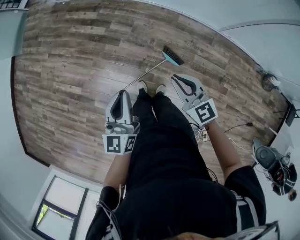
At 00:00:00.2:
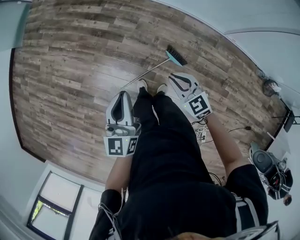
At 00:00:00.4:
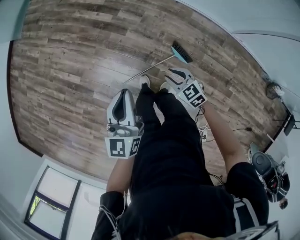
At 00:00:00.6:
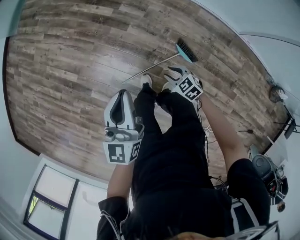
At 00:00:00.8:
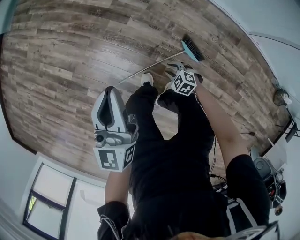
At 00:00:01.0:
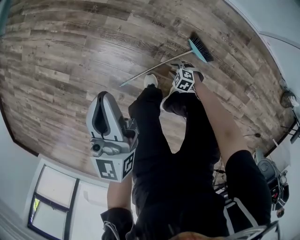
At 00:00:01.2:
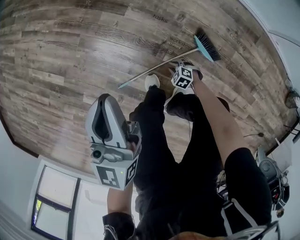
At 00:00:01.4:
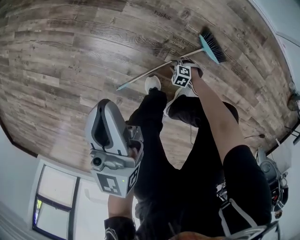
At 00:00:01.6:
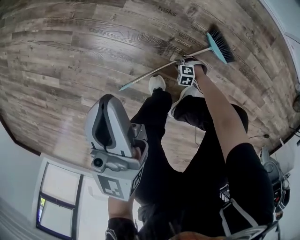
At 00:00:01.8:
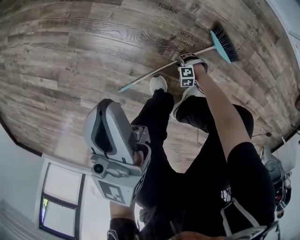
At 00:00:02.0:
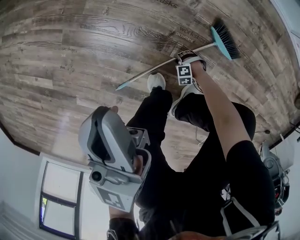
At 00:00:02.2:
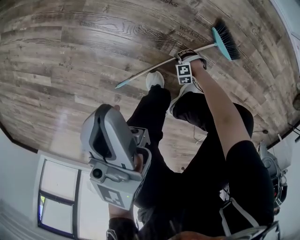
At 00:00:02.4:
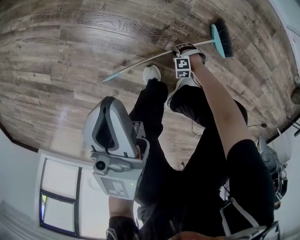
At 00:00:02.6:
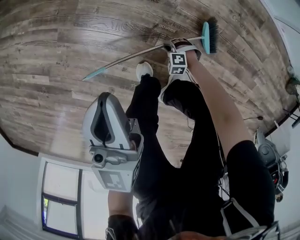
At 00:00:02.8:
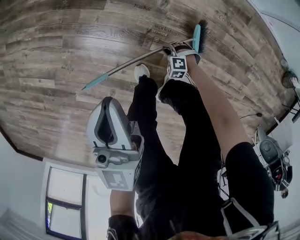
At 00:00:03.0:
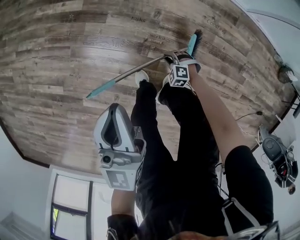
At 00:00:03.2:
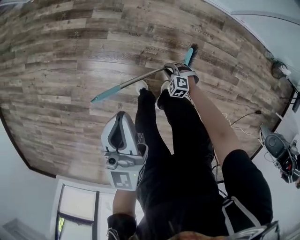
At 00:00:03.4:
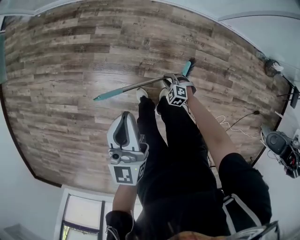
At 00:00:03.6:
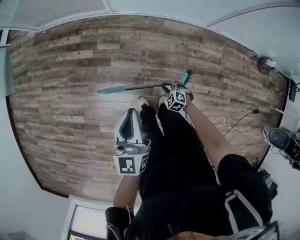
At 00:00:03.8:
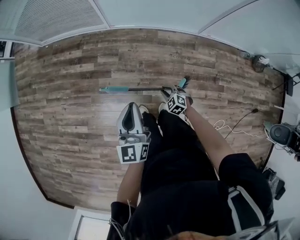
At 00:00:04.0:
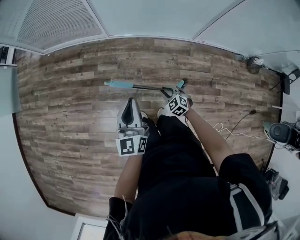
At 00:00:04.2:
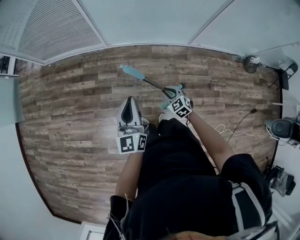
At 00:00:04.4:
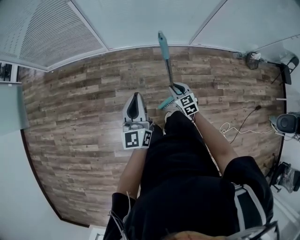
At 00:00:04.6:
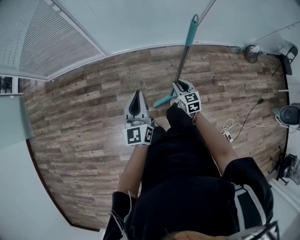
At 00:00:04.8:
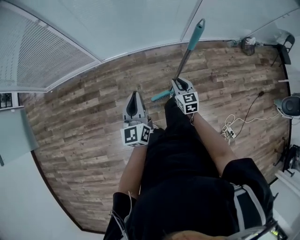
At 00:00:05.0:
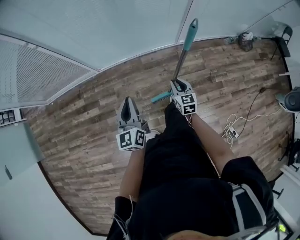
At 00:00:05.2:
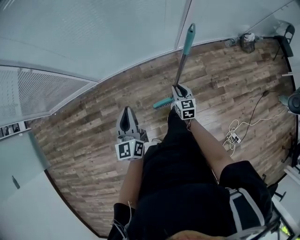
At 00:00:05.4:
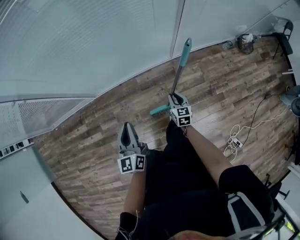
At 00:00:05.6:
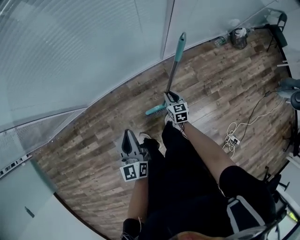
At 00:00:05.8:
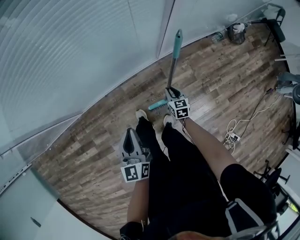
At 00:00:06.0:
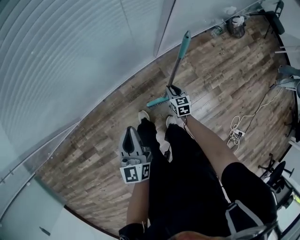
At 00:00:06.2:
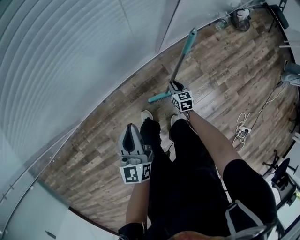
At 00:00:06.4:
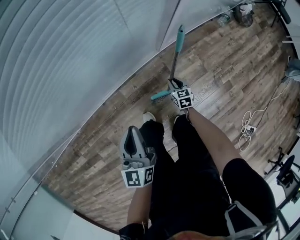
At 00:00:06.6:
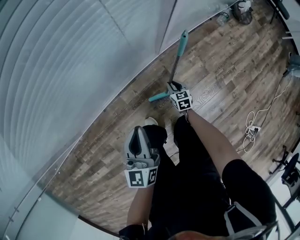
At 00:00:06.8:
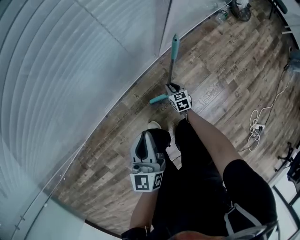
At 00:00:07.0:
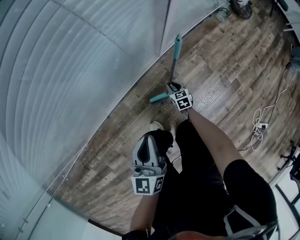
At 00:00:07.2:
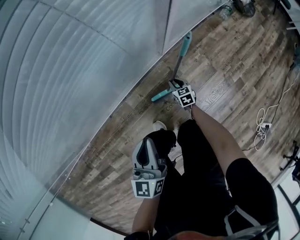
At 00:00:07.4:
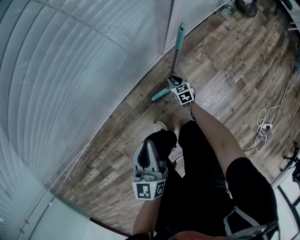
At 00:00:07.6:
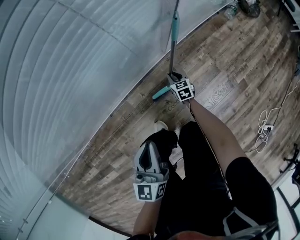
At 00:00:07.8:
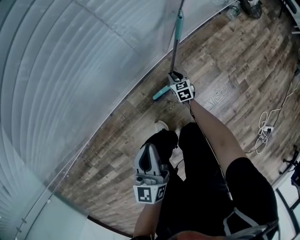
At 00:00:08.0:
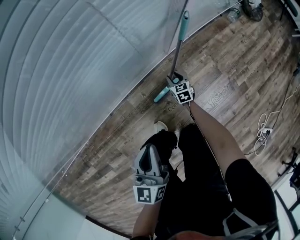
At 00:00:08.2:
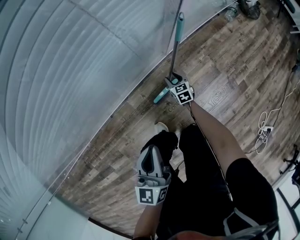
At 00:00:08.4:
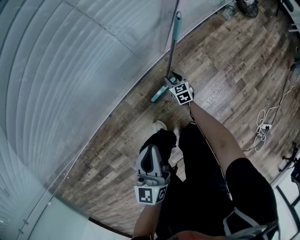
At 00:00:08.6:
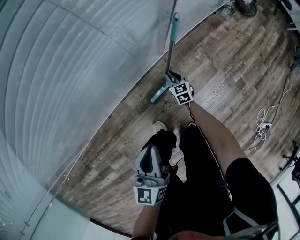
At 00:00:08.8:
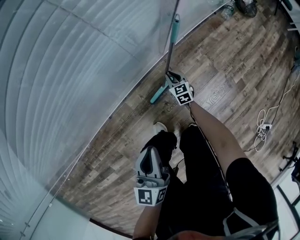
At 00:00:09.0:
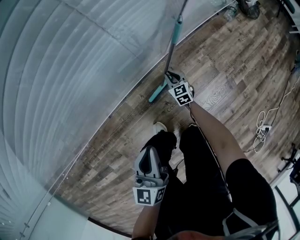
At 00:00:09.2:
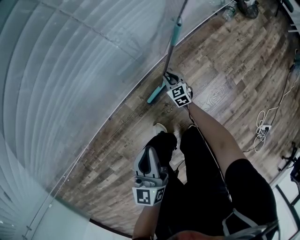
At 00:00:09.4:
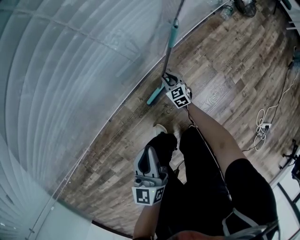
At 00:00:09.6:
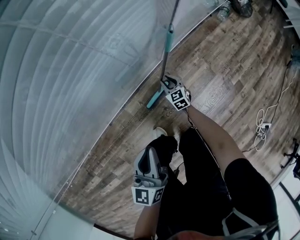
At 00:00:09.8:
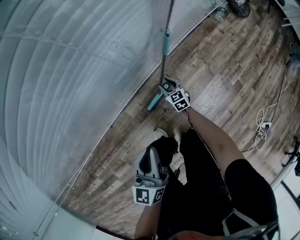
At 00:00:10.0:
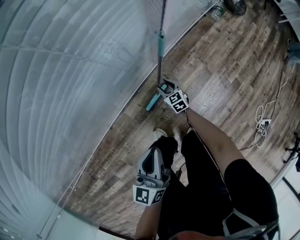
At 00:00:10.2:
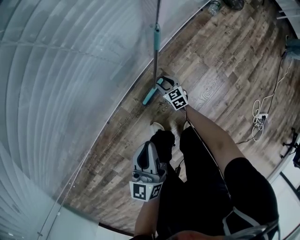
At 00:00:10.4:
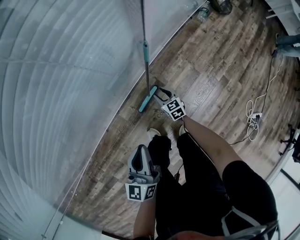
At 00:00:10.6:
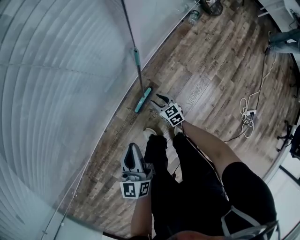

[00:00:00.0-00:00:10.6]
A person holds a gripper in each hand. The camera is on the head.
00:00:00.0 to 00:00:01.6: The right gripper goes some 90 cm downward, angles its fingers downward, by approximately 50 degrees, and opens. The left gripper moves downward, some 40 cm.
00:00:01.6 to 00:00:03.0: The right gripper is displaced upward by roughly 25 cm, and rotates approximately 20 degrees; the left gripper is displaced upward by about 20 cm.
00:00:03.0 to 00:00:04.6: The left gripper is displaced upward by some 25 cm, and rotates about 30 degrees. The right gripper moves upward, roughly 50 cm, and twists roughly 70 degrees clockwise, seen from behind.
00:00:04.6 to 00:00:06.0: The pair of grippers is taken forward and to the right, some 50 cm. The right gripper travels downward by approximately 25 cm, and swivels some 30 degrees. Meanwhile the left gripper is displaced downward by about 20 cm, and swivels about 20 degrees.
00:00:06.0 to 00:00:07.6: The right gripper travels downward and forward by approximately 30 cm; the left gripper goes approximately 20 cm downward.
00:00:07.6 to 00:00:09.0: The grippers stay close to where they were, moving slightly.
00:00:09.0 to 00:00:10.6: The left gripper shifts about 10 cm upward, while the right gripper goes about 15 cm upward and backward, and opens up.

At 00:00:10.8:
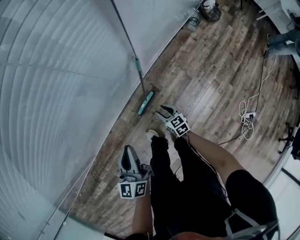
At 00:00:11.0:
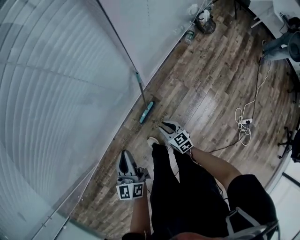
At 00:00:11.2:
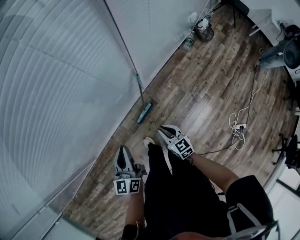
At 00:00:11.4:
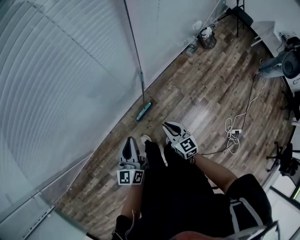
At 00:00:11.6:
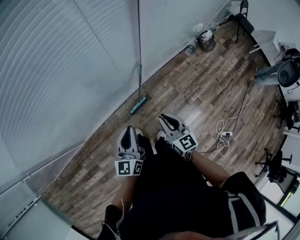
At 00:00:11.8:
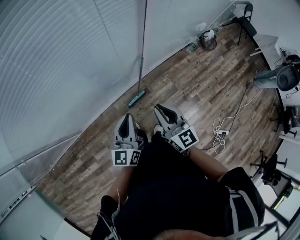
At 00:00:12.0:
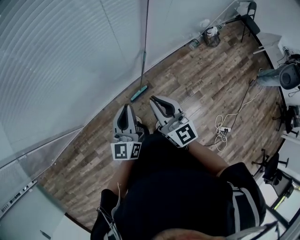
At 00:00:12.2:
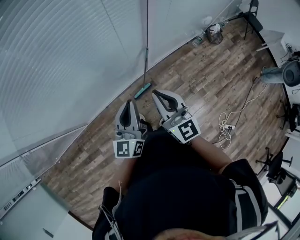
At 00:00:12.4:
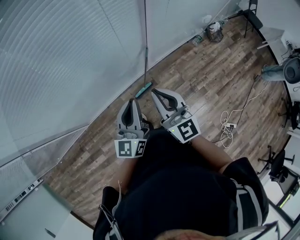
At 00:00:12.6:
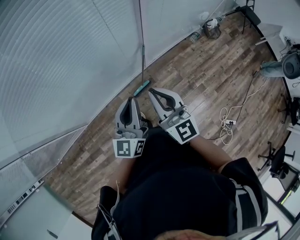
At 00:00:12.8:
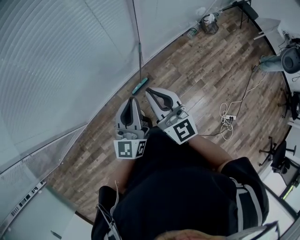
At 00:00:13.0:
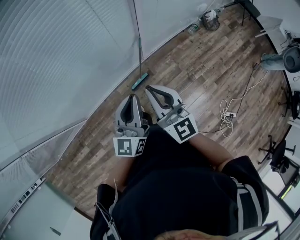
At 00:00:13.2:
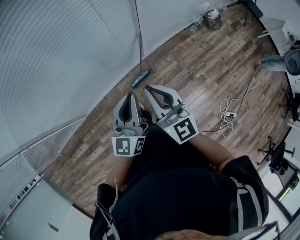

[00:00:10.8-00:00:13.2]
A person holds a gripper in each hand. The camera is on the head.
00:00:10.8 to 00:00:12.0: The left gripper is displaced upward by about 25 cm. The right gripper shifts roughly 60 cm upward, tilts its fingers about 40 degrees upward, and closes.
00:00:12.0 to 00:00:13.2: The left gripper ends up about 5 cm from where it was.

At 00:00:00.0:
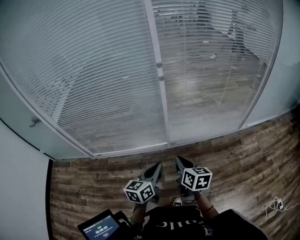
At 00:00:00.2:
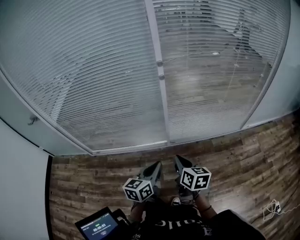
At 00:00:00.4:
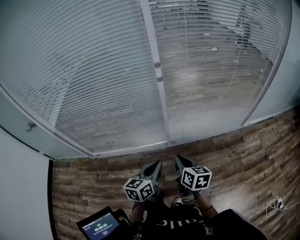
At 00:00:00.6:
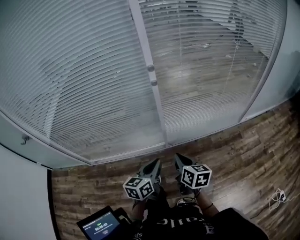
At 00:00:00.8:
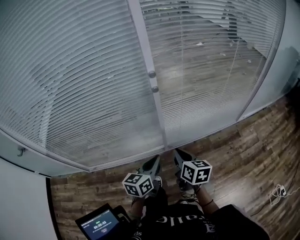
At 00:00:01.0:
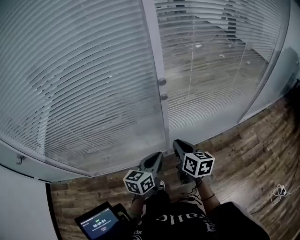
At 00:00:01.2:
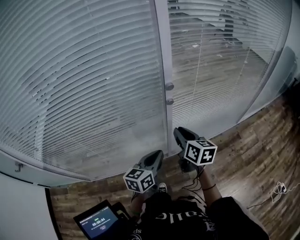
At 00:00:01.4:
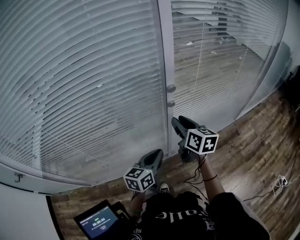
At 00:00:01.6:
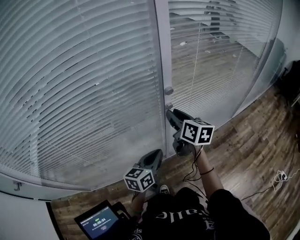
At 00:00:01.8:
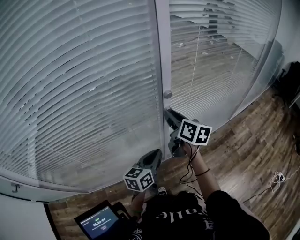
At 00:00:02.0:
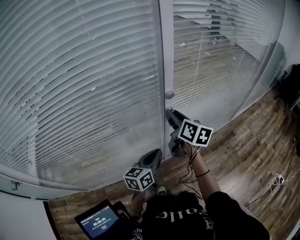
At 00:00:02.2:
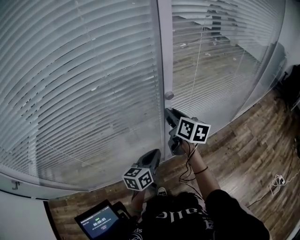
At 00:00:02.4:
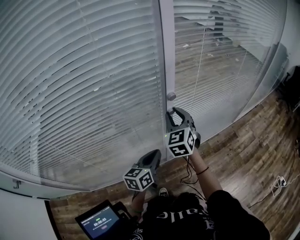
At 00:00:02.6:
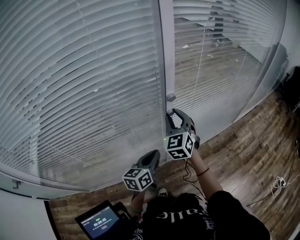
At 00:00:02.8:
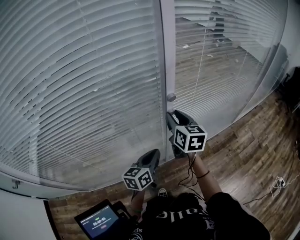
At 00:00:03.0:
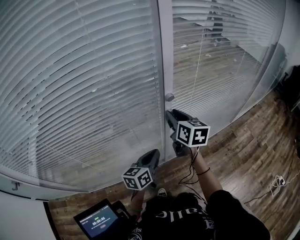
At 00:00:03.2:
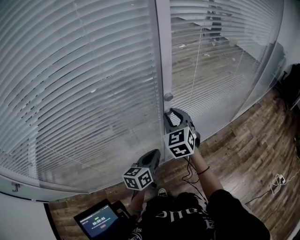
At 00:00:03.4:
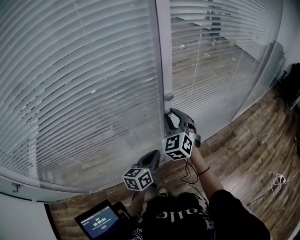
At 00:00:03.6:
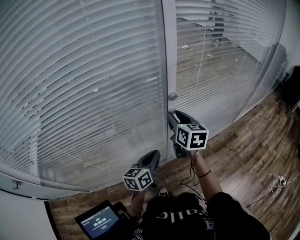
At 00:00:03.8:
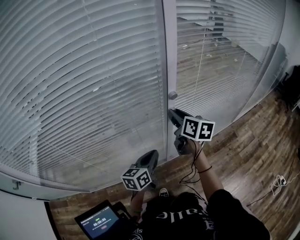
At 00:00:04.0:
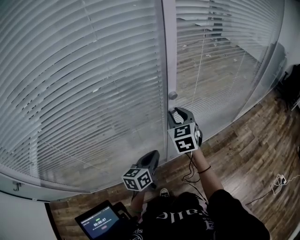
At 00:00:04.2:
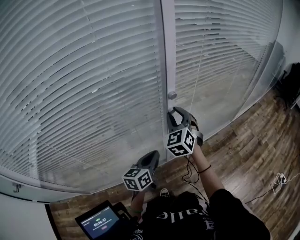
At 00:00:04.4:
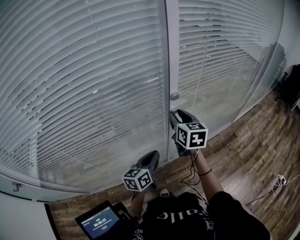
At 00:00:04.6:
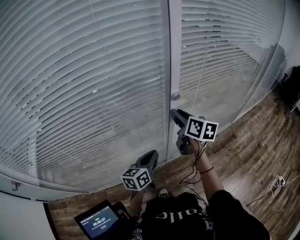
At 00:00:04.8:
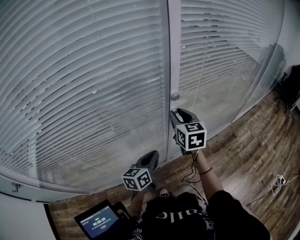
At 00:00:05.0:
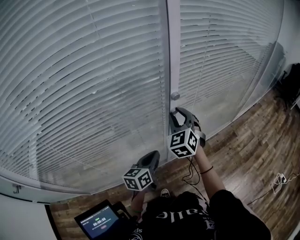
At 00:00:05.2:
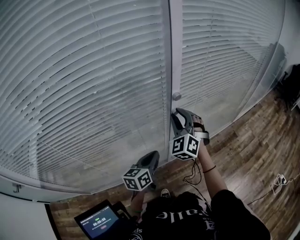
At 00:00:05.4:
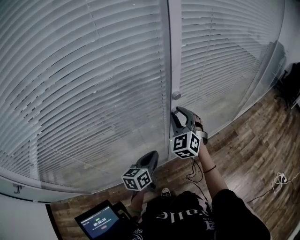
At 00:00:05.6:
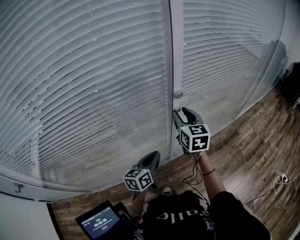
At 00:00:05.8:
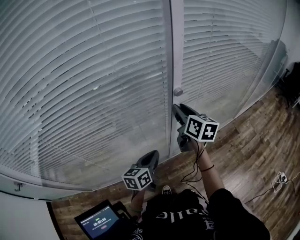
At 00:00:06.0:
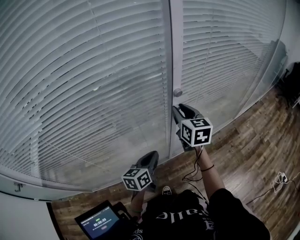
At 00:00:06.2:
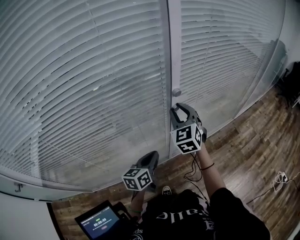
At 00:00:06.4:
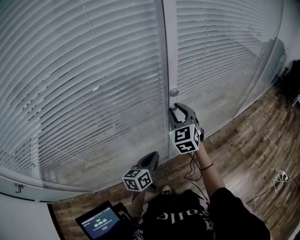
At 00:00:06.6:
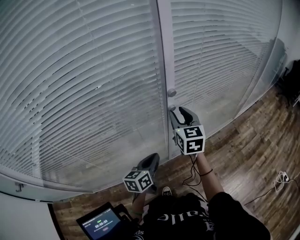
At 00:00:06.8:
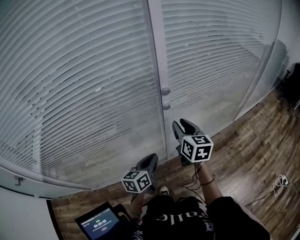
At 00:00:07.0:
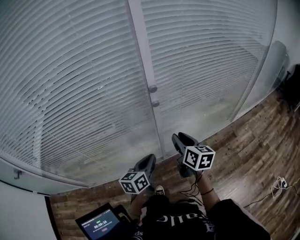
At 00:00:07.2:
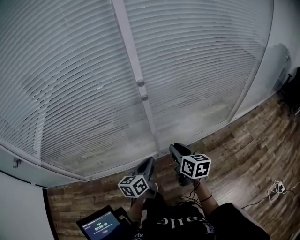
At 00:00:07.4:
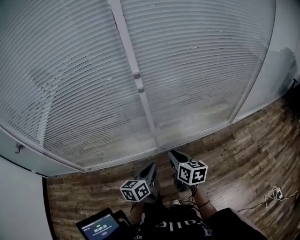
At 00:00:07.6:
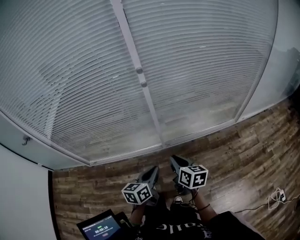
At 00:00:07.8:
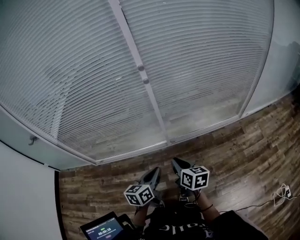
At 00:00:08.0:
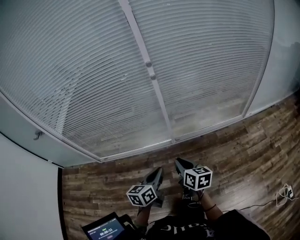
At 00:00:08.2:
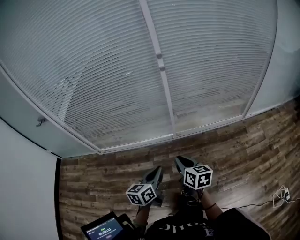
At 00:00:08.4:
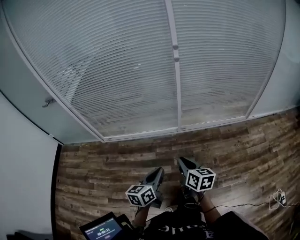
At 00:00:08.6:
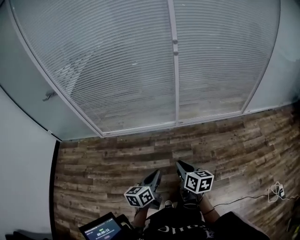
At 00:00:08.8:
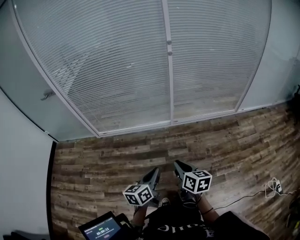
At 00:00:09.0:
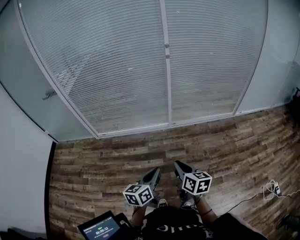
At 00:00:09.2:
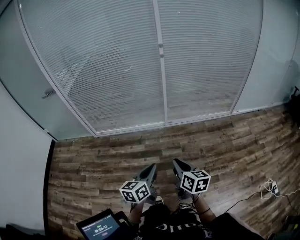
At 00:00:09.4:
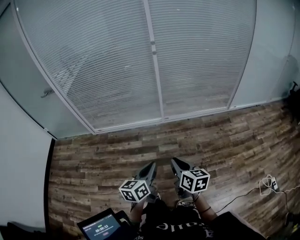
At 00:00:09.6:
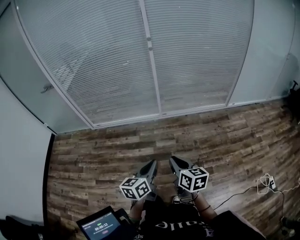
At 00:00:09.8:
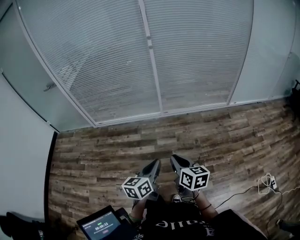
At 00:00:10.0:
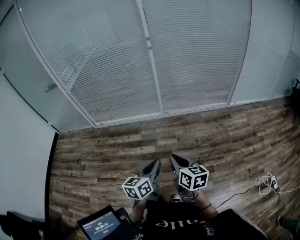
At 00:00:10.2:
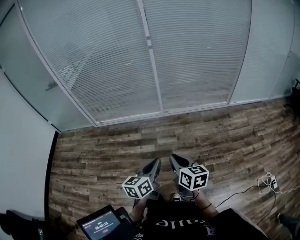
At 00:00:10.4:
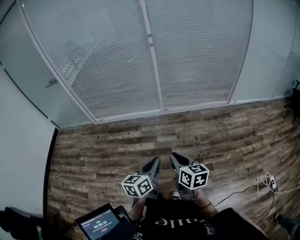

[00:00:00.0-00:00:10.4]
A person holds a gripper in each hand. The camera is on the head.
00:00:00.0 to 00:00:01.4: The grippers both shift forward by some 40 cm. The right gripper opens.
00:00:01.4 to 00:00:03.0: The right gripper travels forward by about 5 cm.
00:00:06.0 to 00:00:07.4: The right gripper shifts roughly 40 cm backward, to the right and downward, and swivels approximately 30 degrees. Meanwhile the left gripper heads to the right and backward, covering about 30 cm.
00:00:07.4 to 00:00:09.0: The two grippers travel together, backward, some 50 cm.
00:00:09.0 to 00:00:10.4: The left gripper travels to the right and backward by some 20 cm. Meanwhile the right gripper shifts some 20 cm backward and to the right.
